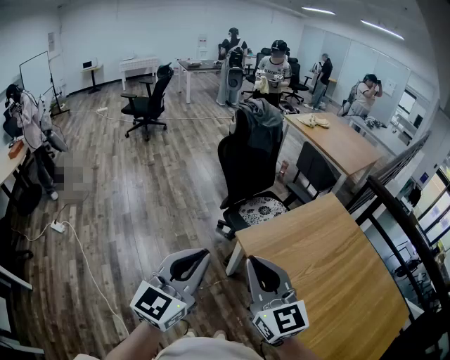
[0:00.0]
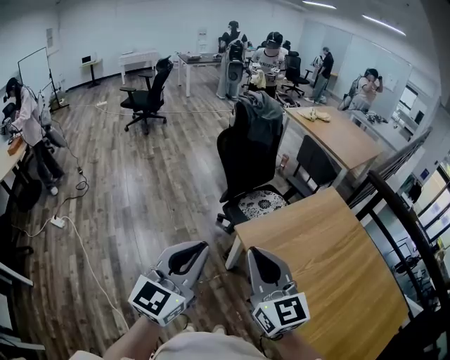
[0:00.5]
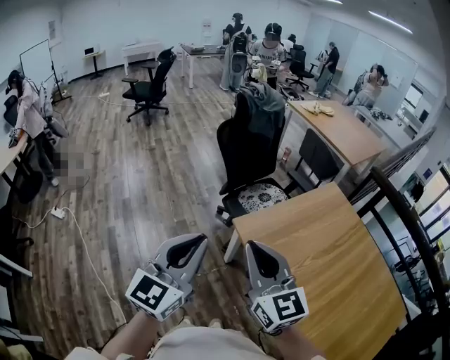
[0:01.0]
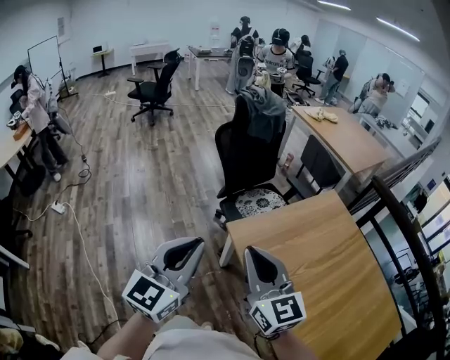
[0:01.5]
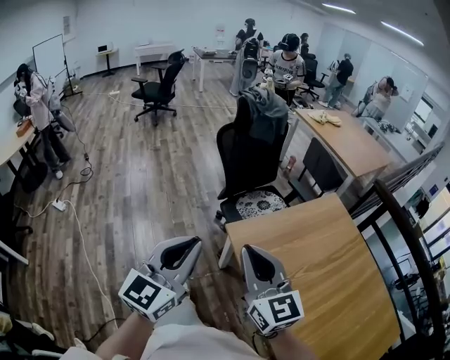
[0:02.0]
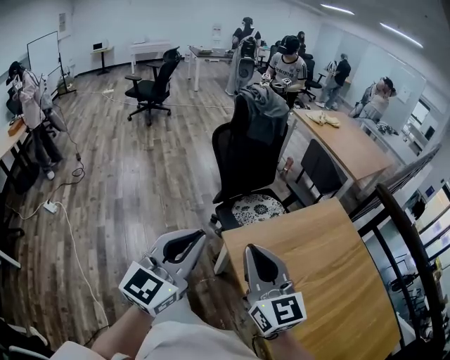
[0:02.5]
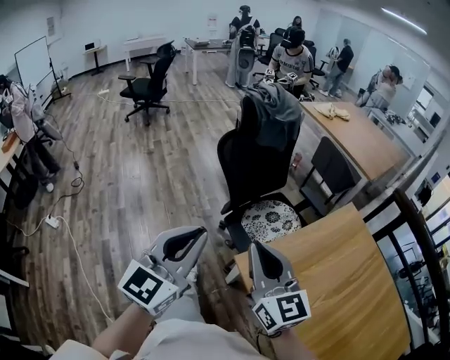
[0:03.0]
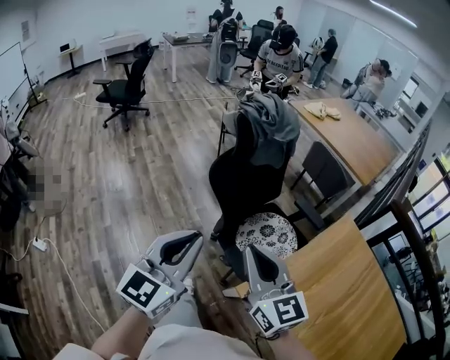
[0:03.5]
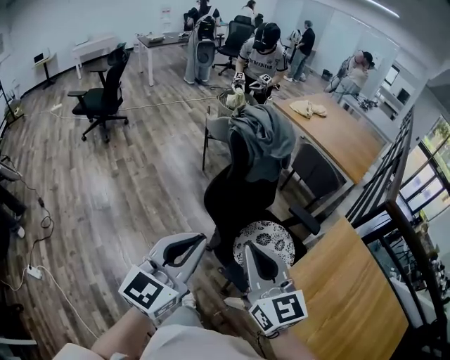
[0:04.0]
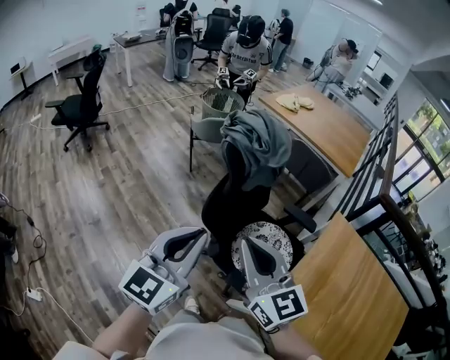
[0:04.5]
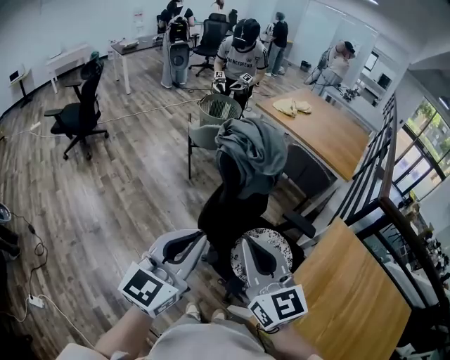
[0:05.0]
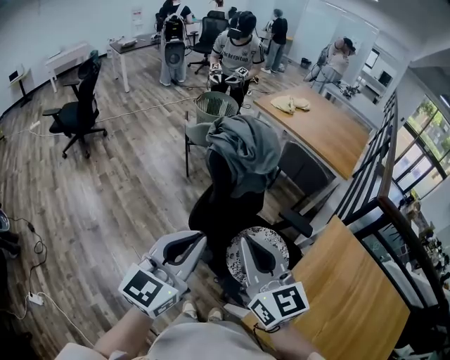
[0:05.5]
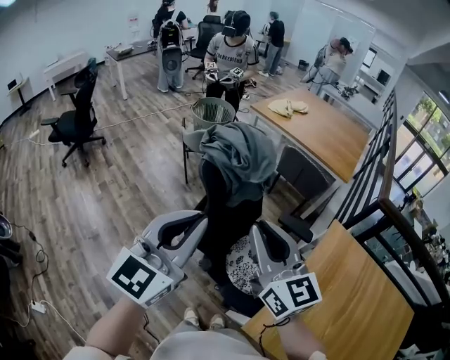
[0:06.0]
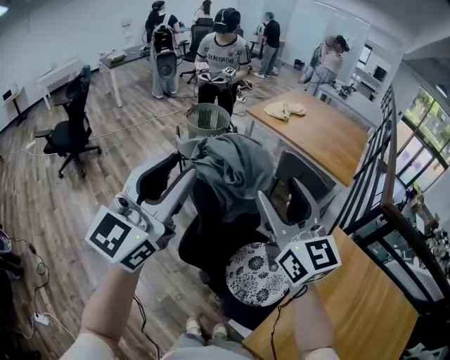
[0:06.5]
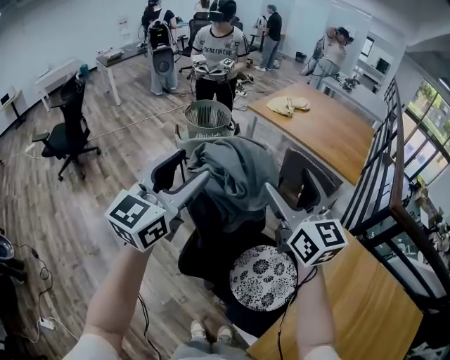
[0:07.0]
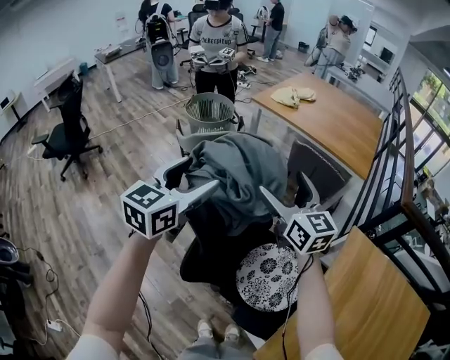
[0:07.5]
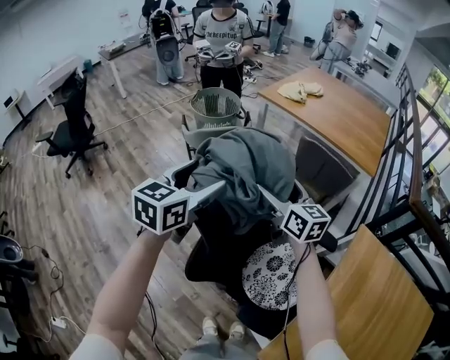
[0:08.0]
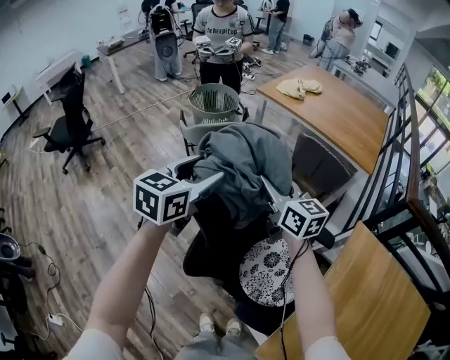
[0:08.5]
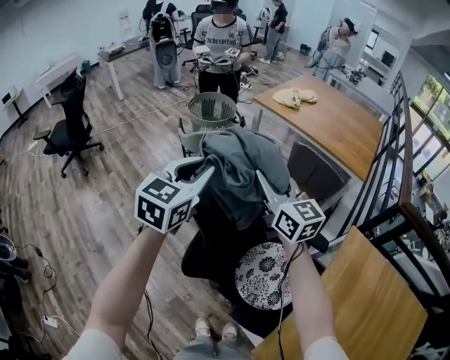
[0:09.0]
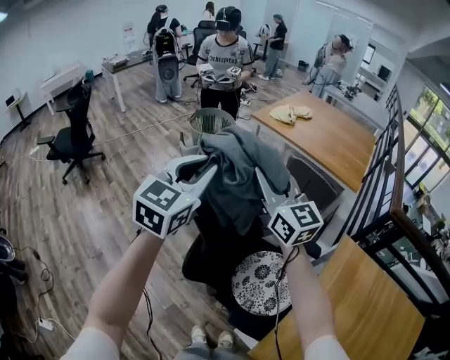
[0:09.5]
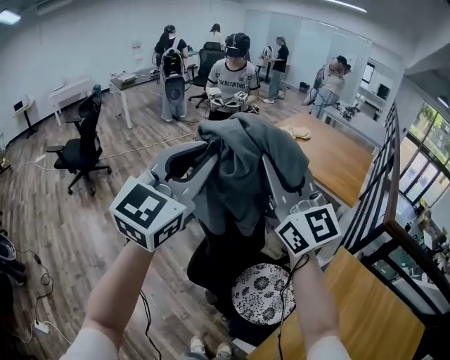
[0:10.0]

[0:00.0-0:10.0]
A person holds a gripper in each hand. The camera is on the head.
0:00.0 to 0:02.0: The left gripper heads to the right, covering approximately 5 cm; the right gripper moves to the right and forward, some 10 cm.
0:02.0 to 0:04.0: The two grippers travel together, forward, roughly 60 cm.
0:04.0 to 0:06.0: The left gripper goes roughly 20 cm forward and upward; the right gripper shifts some 15 cm forward.
0:06.0 to 0:08.0: The two grippers go approximately 35 cm forward and downward. The right gripper opens its fingers. Meanwhile the left gripper rotates approximately 30 degrees, and opens.
0:08.0 to 0:10.0: The two grippers go about 35 cm upward and backward. The right gripper points its fingers some 30 degrees further upward, and closes. Meanwhile the left gripper changes its angle by roughly 40 degrees, and closes its fingers.

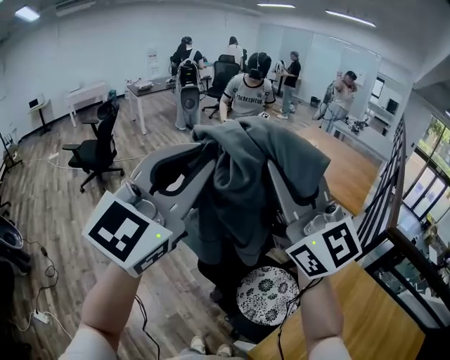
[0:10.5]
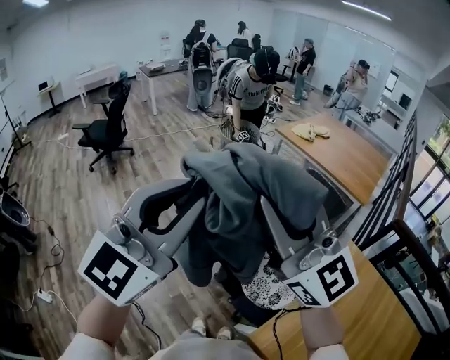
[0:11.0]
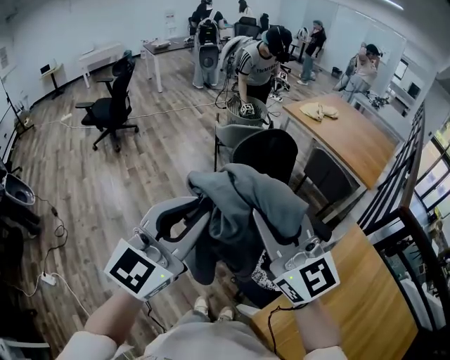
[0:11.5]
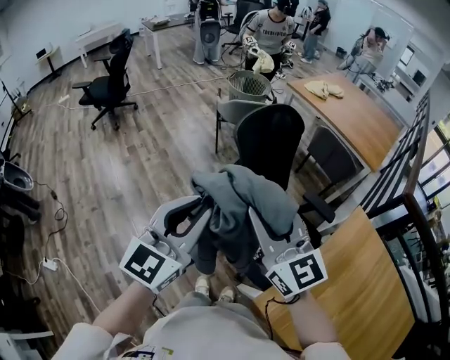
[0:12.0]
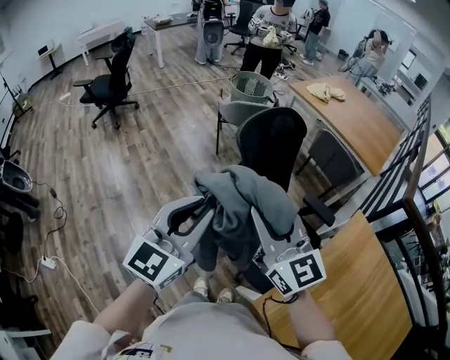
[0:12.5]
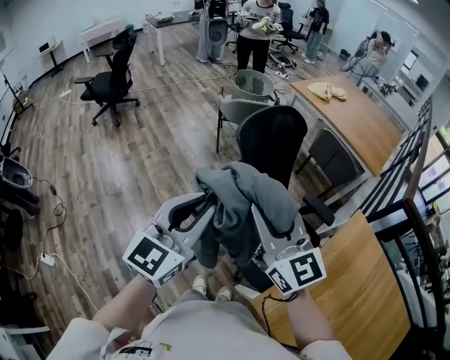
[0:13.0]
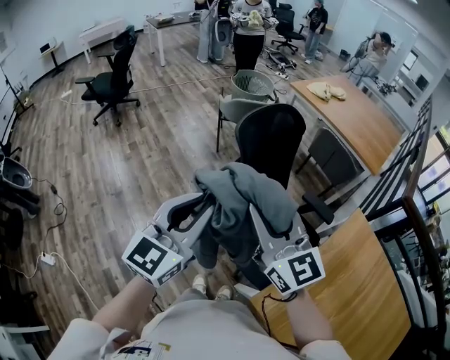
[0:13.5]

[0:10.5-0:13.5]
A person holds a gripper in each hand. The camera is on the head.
0:10.5 to 0:12.0: The grippers both shift downward by some 25 cm. The right gripper rotates about 30 degrees. Meanwhile the left gripper rotates some 20 degrees.
0:12.0 to 0:13.5: The grippers make only small movements.

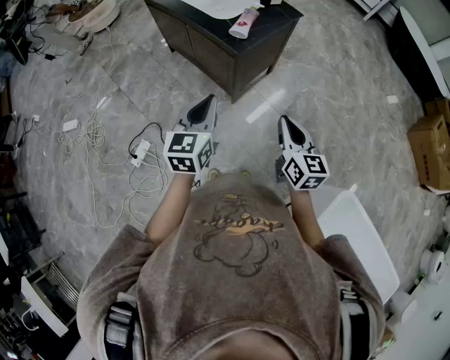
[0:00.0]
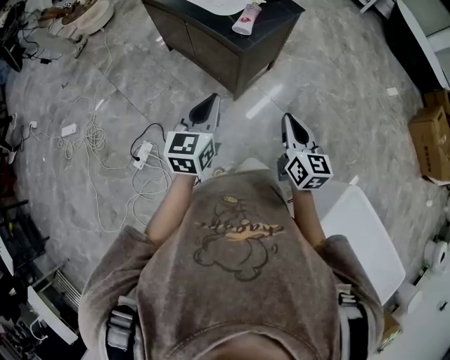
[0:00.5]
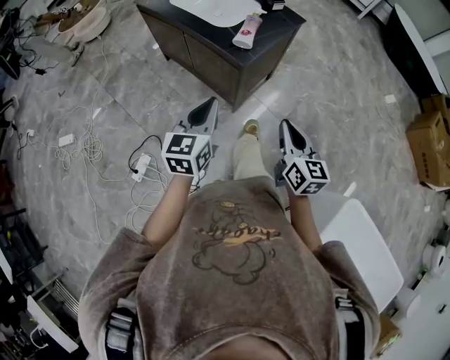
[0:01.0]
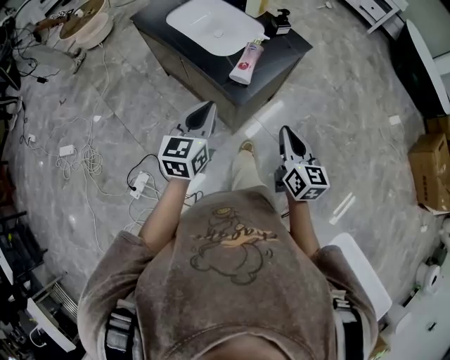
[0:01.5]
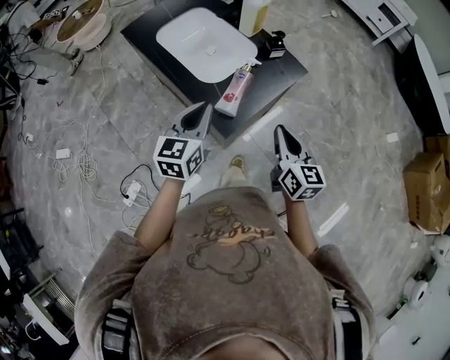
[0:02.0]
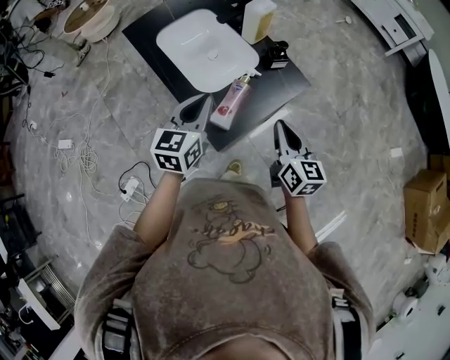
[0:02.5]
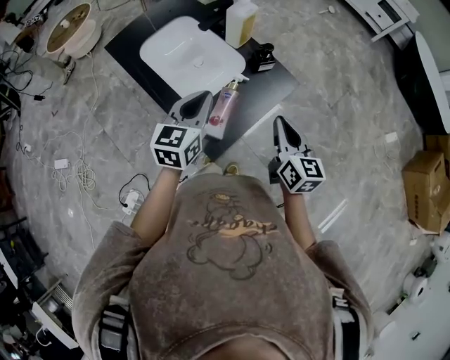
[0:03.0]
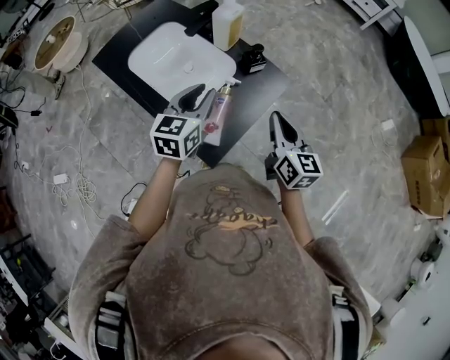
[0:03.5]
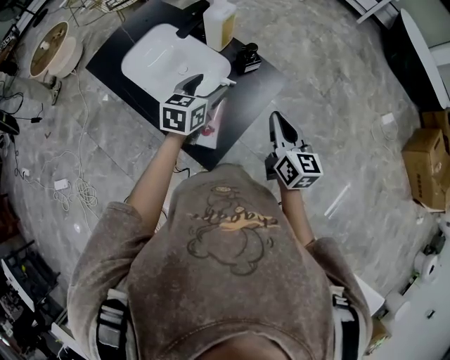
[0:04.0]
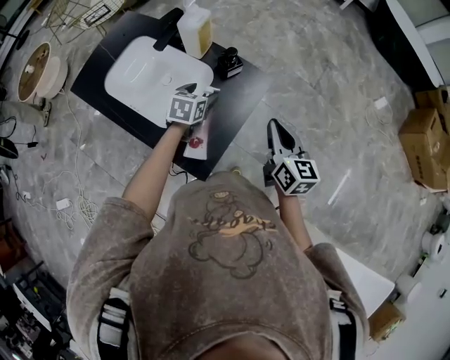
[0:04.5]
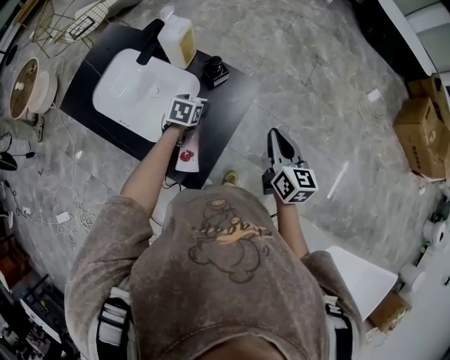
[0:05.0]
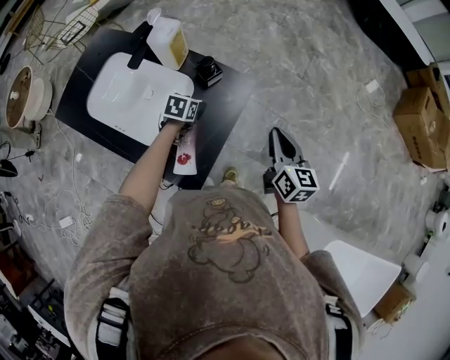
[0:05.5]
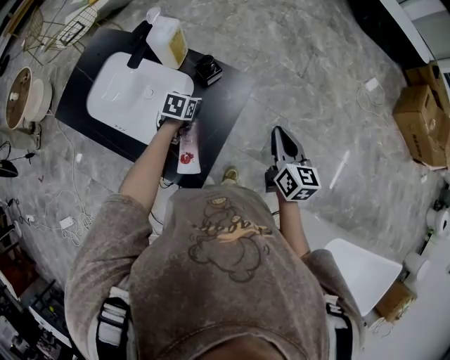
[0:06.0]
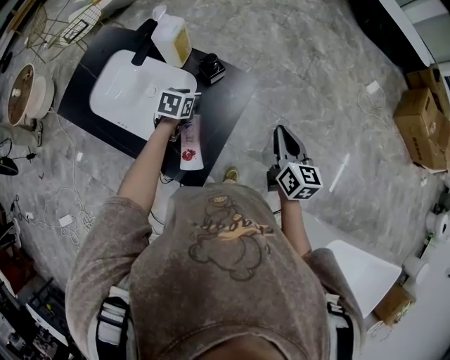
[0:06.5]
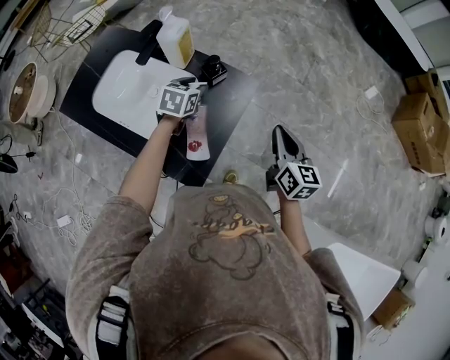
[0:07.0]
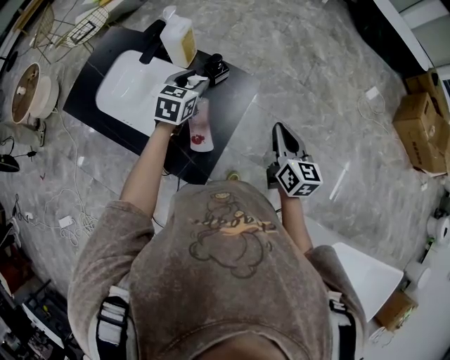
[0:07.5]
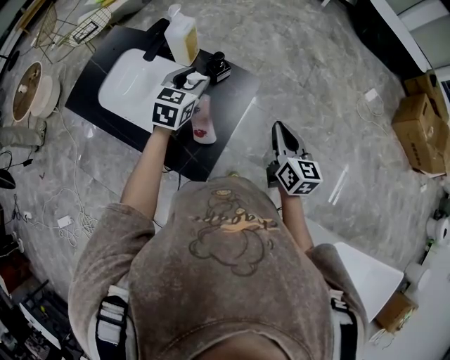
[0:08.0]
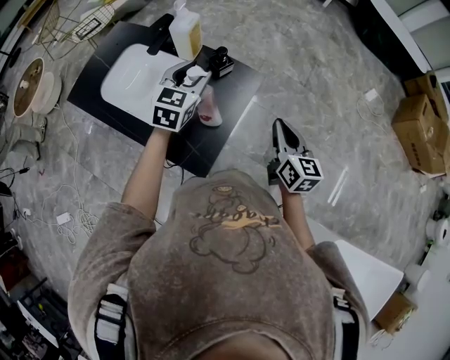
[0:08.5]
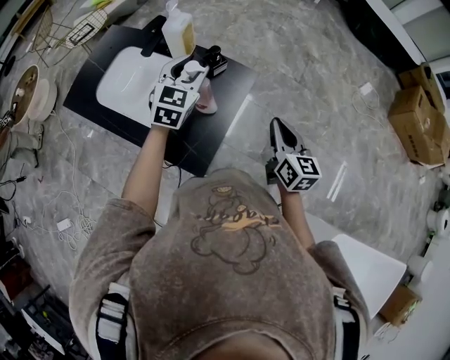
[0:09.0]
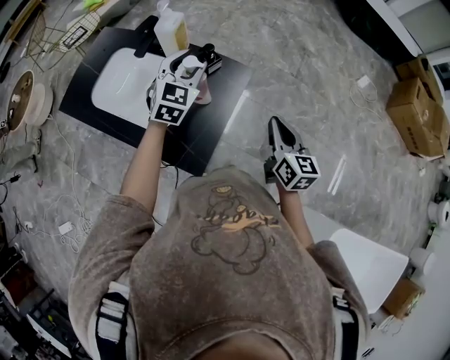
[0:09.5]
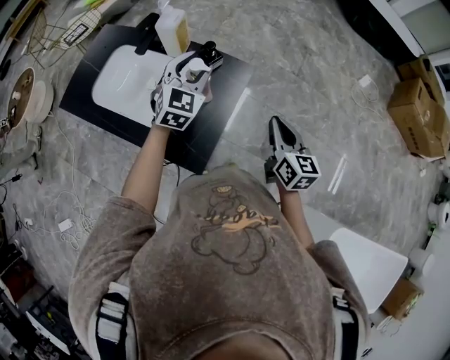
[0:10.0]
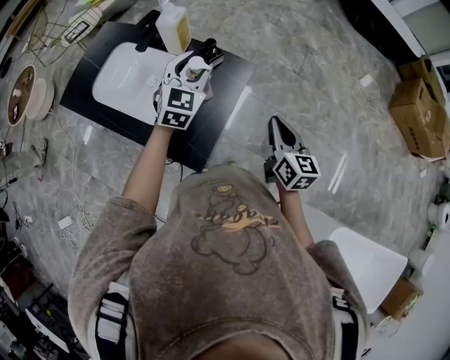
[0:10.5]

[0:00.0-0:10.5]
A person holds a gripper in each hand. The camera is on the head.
0:00.0 to 0:02.0: Both grippers move forward, about 40 cm.
0:02.0 to 0:04.0: Both grippers travel together forward, some 20 cm. The left gripper changes its angle by approximately 20 degrees, and opens up.
0:04.0 to 0:06.5: The right gripper shifts roughly 10 cm to the right. Meanwhile the left gripper moves downward and forward, approximately 15 cm, and rotates approximately 30 degrees.
0:06.5 to 0:08.5: The left gripper goes some 20 cm upward, and points its fingers approximately 30 degrees further upward. Meanwhile the right gripper ends up roughly 5 cm from where it was.
0:08.5 to 0:10.5: There are only small adjustments of the grippers.

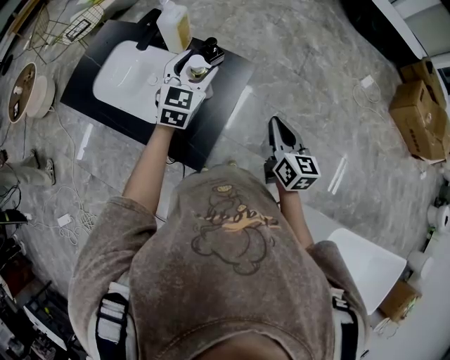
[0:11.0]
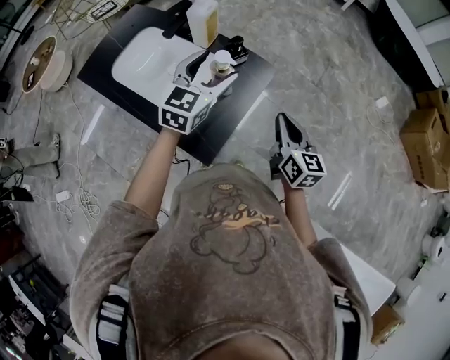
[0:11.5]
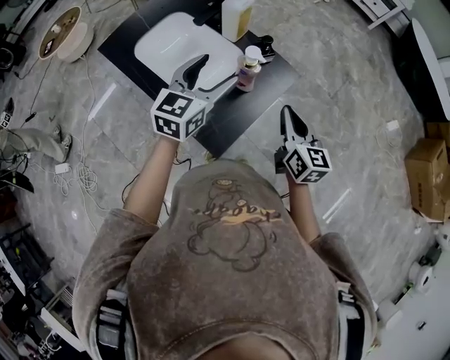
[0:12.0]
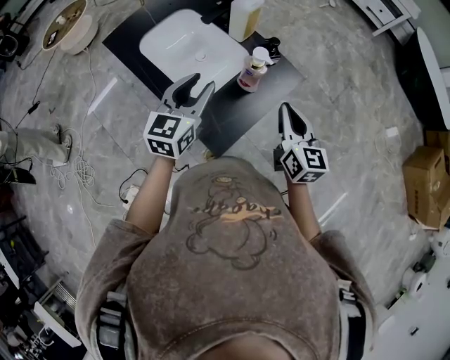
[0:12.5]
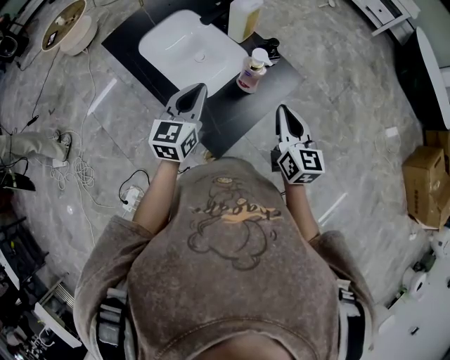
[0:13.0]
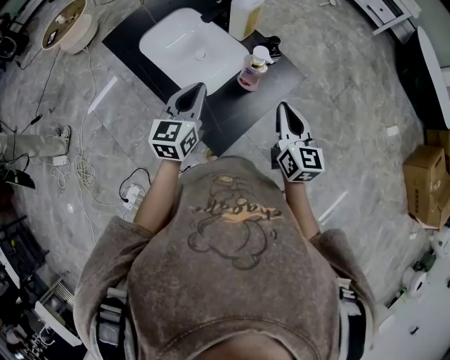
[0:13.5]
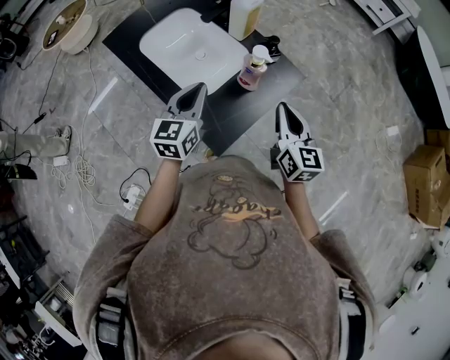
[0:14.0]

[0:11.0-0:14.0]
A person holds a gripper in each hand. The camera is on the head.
0:11.0 to 0:12.5: The right gripper goes roughly 10 cm to the left, and changes its angle by some 20 degrees; the left gripper heads to the left and backward, covering roughly 20 cm, and turns by approximately 30 degrees.
0:12.5 to 0:14.0: The left gripper closes up.
